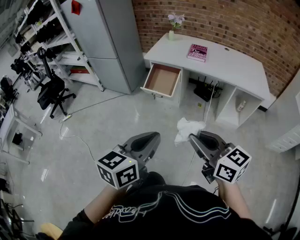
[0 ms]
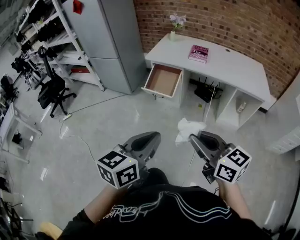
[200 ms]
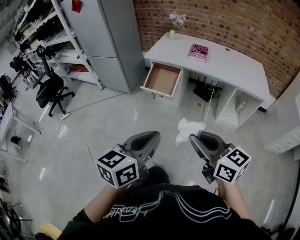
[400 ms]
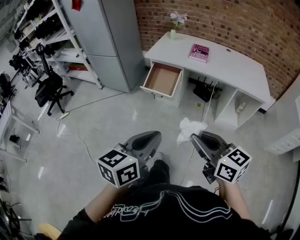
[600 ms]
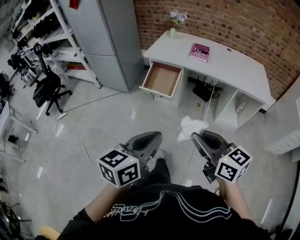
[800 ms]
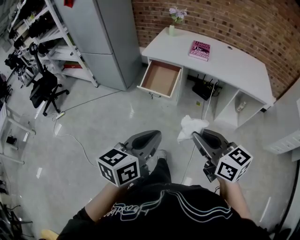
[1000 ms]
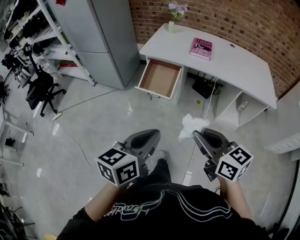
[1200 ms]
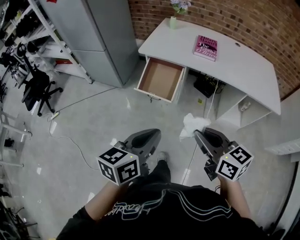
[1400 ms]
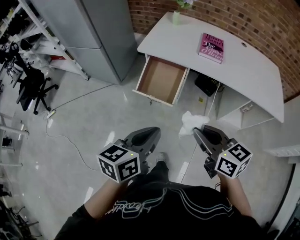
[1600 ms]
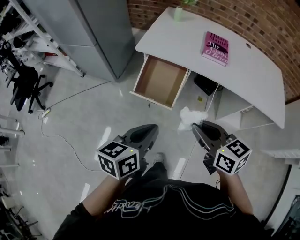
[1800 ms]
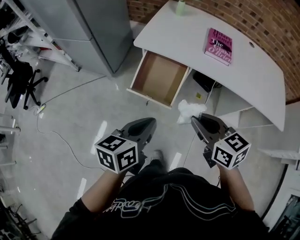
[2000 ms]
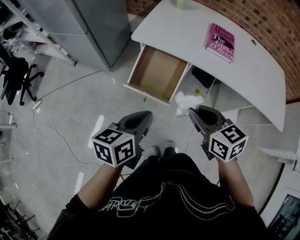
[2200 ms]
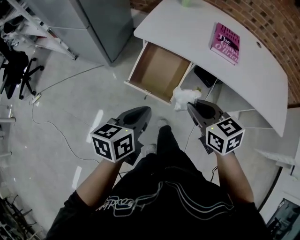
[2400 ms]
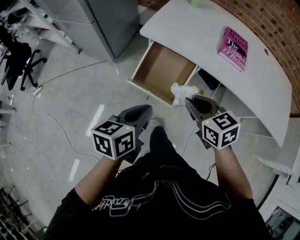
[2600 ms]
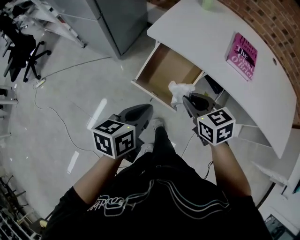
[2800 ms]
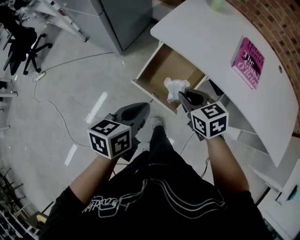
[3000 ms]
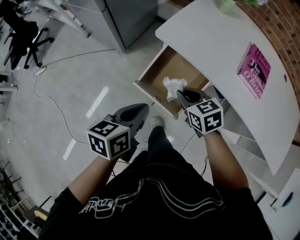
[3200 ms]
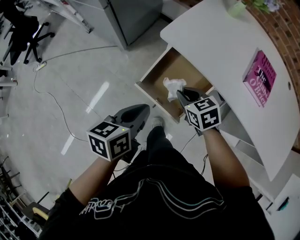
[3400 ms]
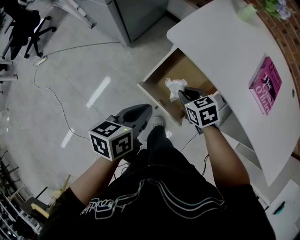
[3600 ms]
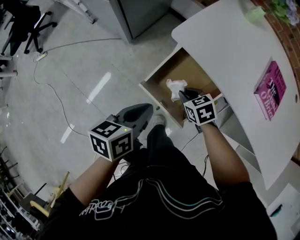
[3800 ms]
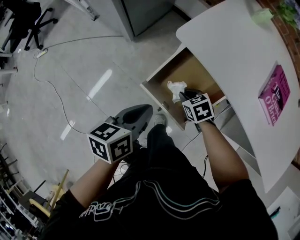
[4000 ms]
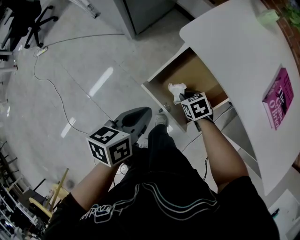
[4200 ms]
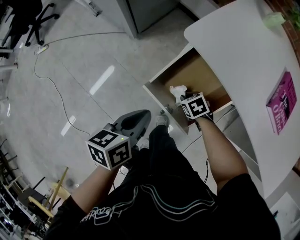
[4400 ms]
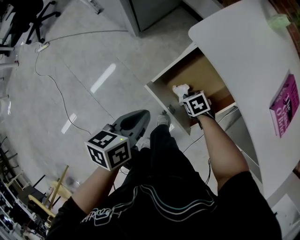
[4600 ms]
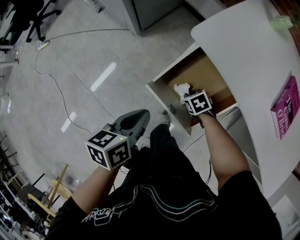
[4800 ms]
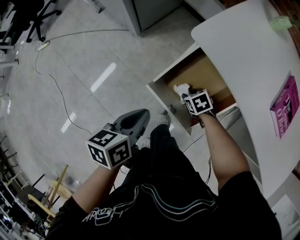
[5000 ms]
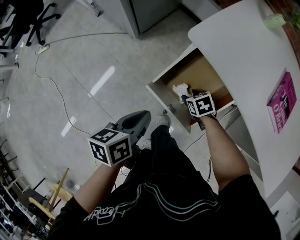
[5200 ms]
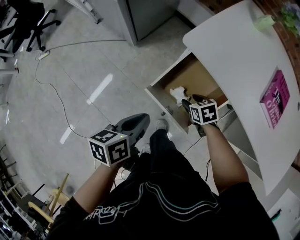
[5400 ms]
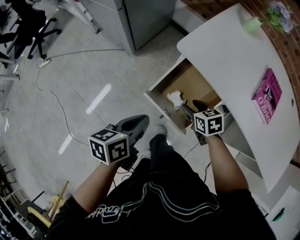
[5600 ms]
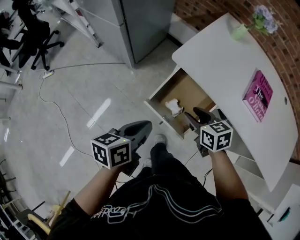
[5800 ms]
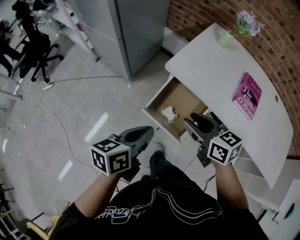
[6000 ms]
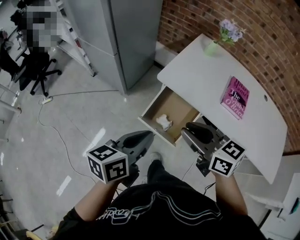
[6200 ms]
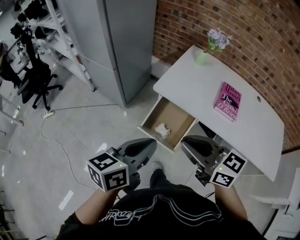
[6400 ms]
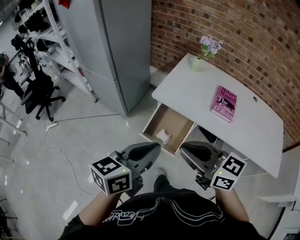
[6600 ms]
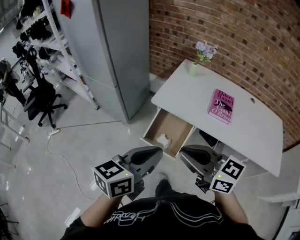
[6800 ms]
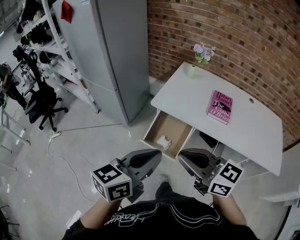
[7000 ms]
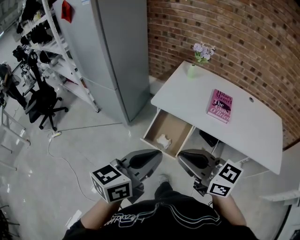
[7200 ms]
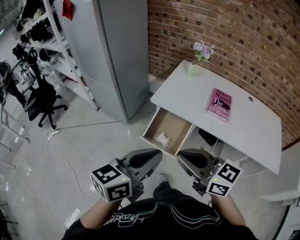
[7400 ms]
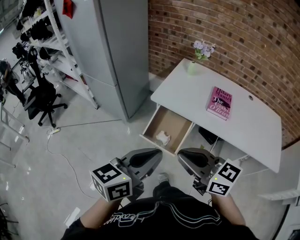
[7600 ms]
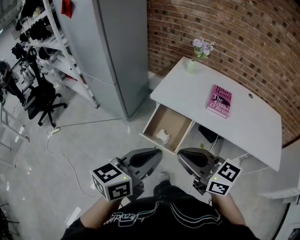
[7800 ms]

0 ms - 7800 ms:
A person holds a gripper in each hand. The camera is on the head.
0 ms - 1600 ms: Both grippers are carried forward, approximately 40 cm.
1600 ms - 3200 ms: Both grippers move forward and downward, some 40 cm. The right gripper rotates approximately 30 degrees. Meanwhile the left gripper rotates about 20 degrees.
3200 ms - 4600 ms: The left gripper travels downward by roughly 10 cm. The right gripper heads downward, covering about 30 cm, and turns by roughly 30 degrees.
4600 ms - 6200 ms: The right gripper travels upward by approximately 50 cm, points its fingers some 60 degrees further upward, and opens and closes again; the left gripper goes roughly 30 cm upward, and turns by roughly 30 degrees.
6200 ms - 7800 ms: The left gripper is displaced backward, upward and to the right by approximately 20 cm, and changes its angle by about 20 degrees; the right gripper heads backward and upward, covering some 20 cm.

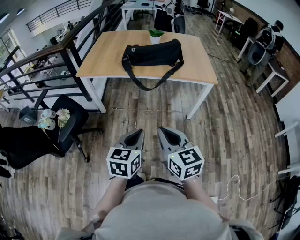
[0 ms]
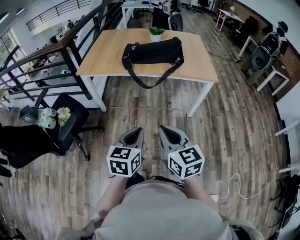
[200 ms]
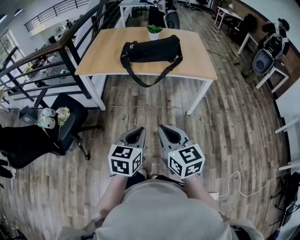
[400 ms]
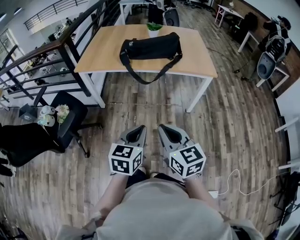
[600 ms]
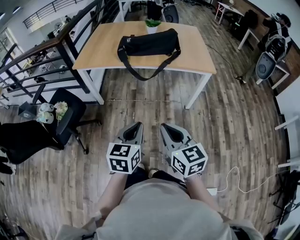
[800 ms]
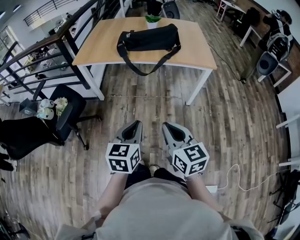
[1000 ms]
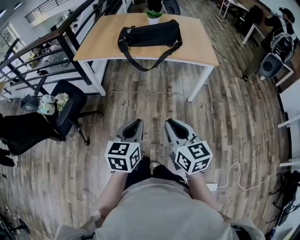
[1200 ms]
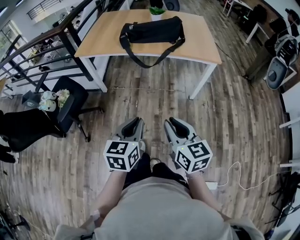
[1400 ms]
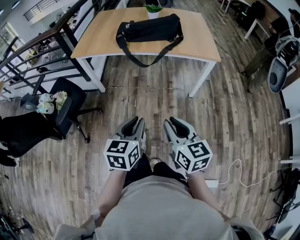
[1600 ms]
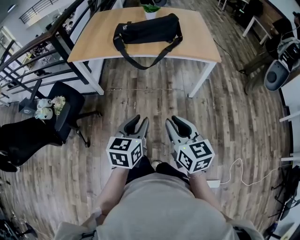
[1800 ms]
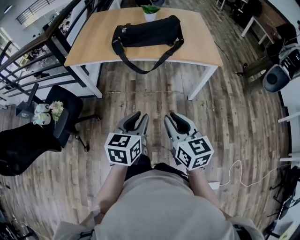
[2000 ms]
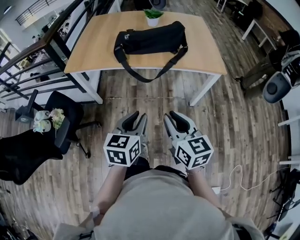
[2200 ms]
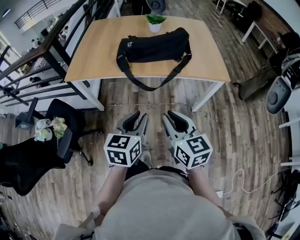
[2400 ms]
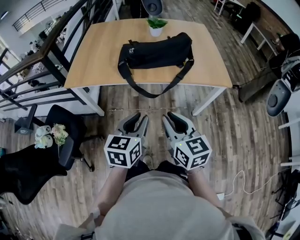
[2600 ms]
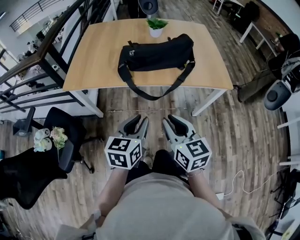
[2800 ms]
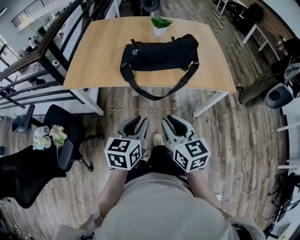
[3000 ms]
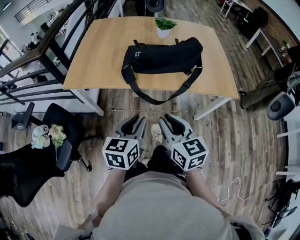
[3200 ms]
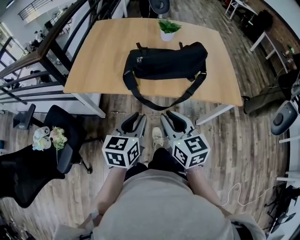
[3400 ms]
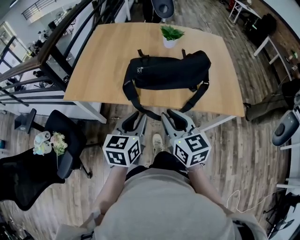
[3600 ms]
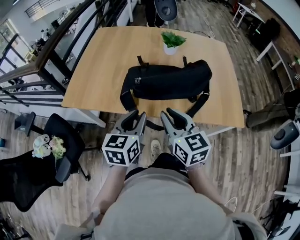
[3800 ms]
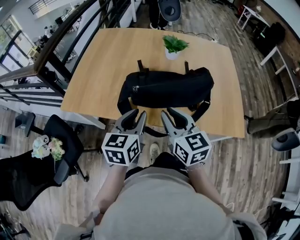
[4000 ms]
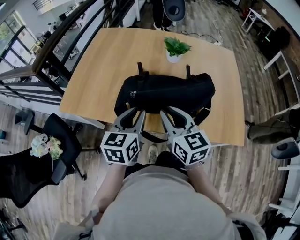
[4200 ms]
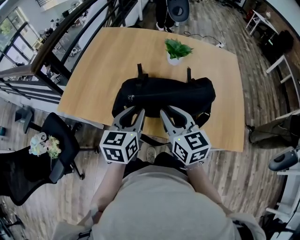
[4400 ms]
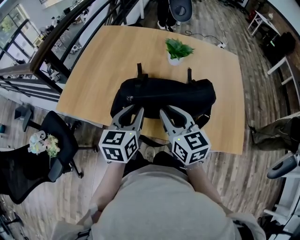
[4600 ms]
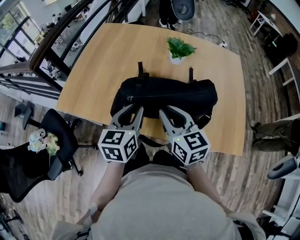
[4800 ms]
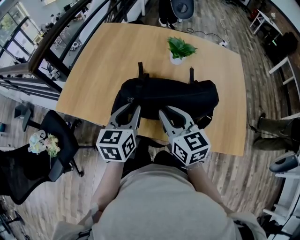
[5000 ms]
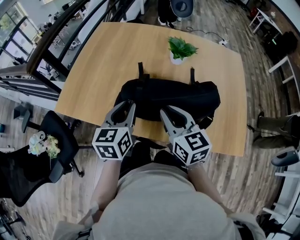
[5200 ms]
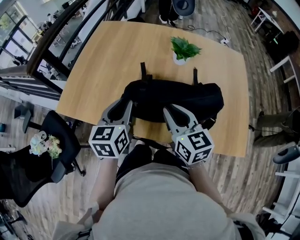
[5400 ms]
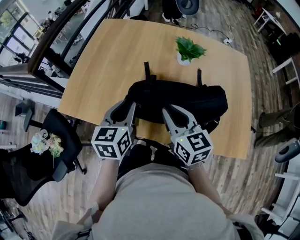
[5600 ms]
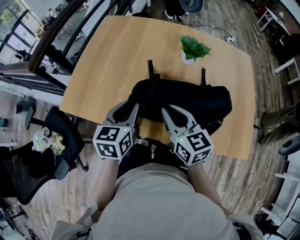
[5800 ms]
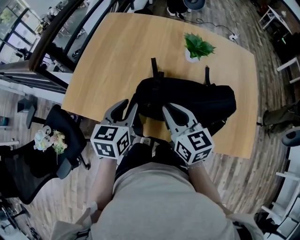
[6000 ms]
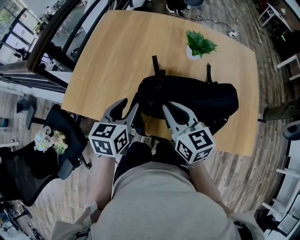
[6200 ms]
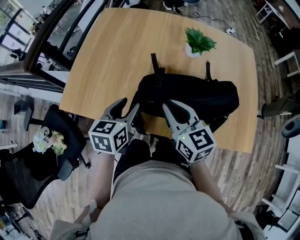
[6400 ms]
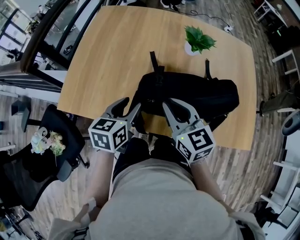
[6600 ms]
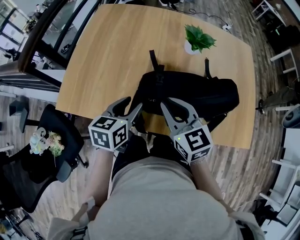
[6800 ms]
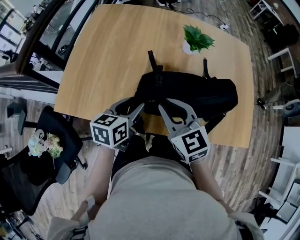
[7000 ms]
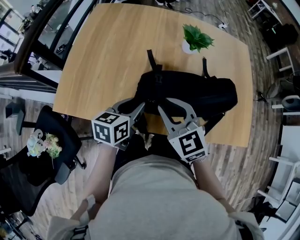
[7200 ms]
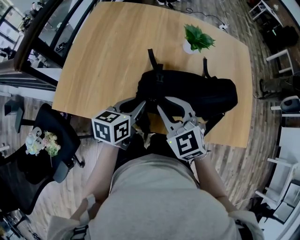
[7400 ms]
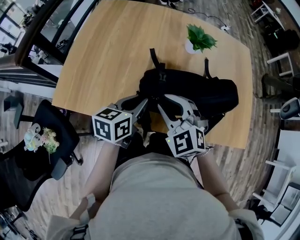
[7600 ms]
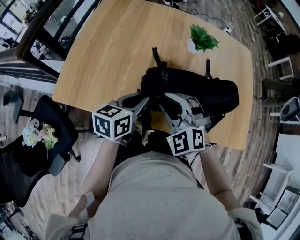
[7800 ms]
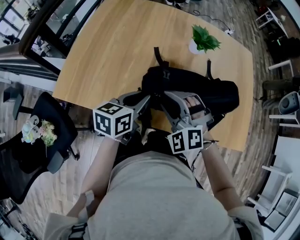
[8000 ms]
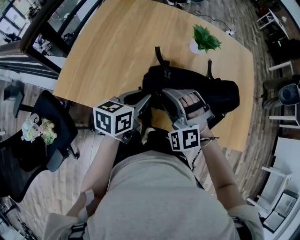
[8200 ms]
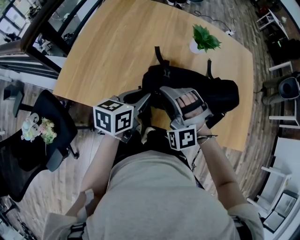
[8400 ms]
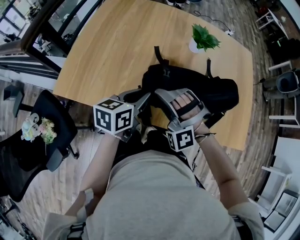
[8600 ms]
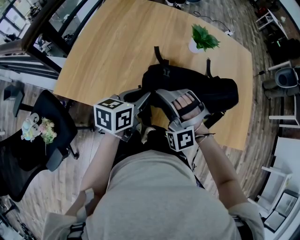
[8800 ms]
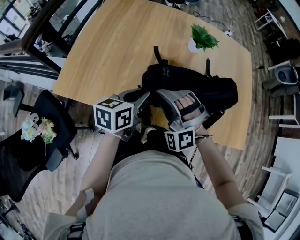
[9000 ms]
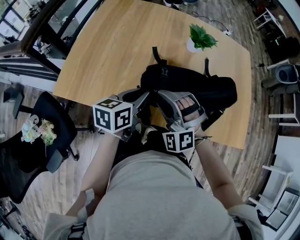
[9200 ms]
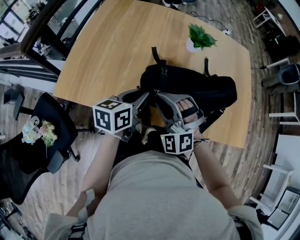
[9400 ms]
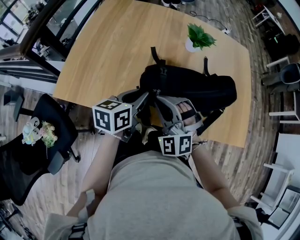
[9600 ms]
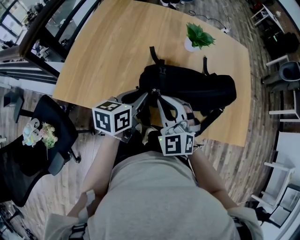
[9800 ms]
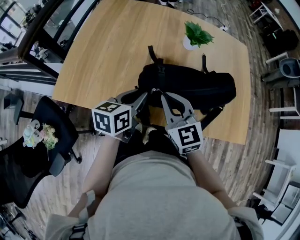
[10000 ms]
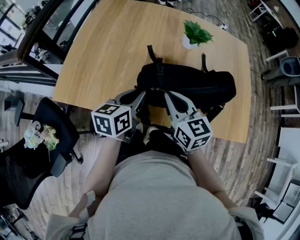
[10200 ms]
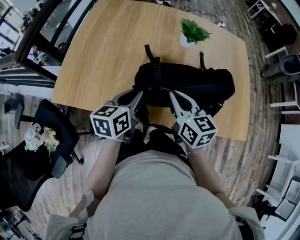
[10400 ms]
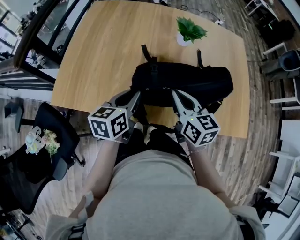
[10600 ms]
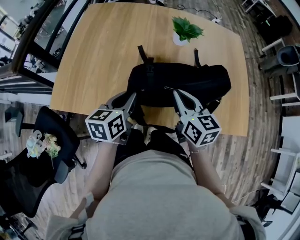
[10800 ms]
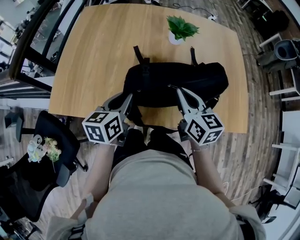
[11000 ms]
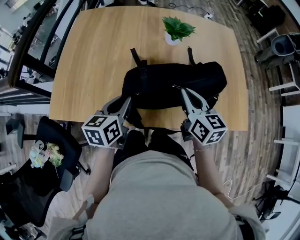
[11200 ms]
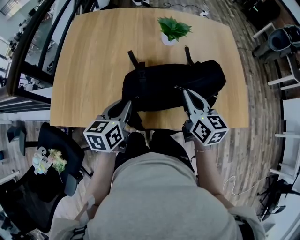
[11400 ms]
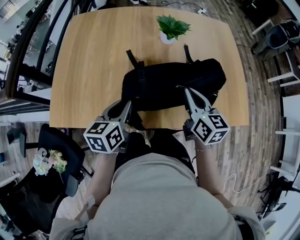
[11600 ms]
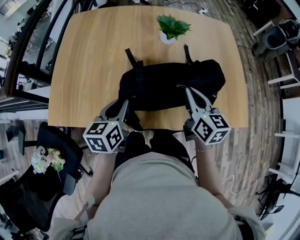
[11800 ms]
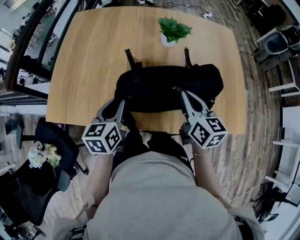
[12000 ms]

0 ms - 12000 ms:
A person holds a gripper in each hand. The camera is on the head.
0 ms - 1600 ms: The right gripper moves to the right and downward, approximately 10 cm.
1600 ms - 3000 ms: The two grippers go about 30 cm forward.
3000 ms - 4400 ms: The two grippers go approximately 30 cm forward.
4400 ms - 6000 ms: The grippers both shift forward and to the left by approximately 10 cm.
6000 ms - 7600 ms: The left gripper shifts by about 5 cm, and changes its angle by approximately 30 degrees. The right gripper rolls counterclockwise, seen from behind, by roughly 50 degrees.
7600 ms - 9000 ms: The right gripper rotates around the line of its fingers by some 50 degrees, counterclockwise from behind.
9000 ms - 10400 ms: The right gripper heads to the right, covering roughly 5 cm, twists roughly 100 degrees clockwise, seen from behind, and closes.
10400 ms - 12000 ms: The right gripper goes approximately 10 cm to the right.

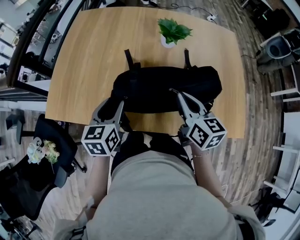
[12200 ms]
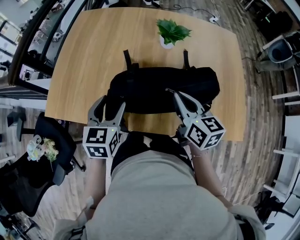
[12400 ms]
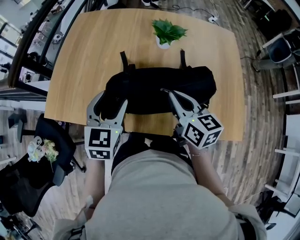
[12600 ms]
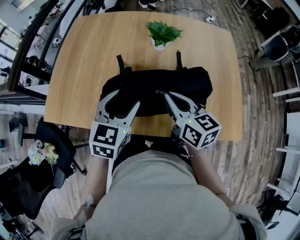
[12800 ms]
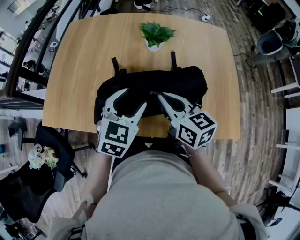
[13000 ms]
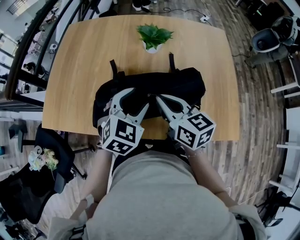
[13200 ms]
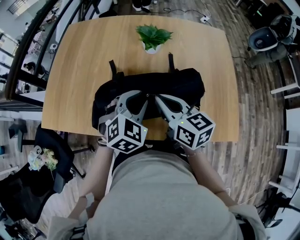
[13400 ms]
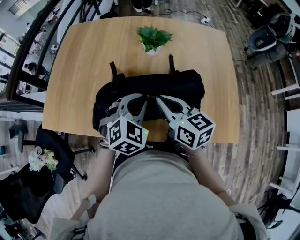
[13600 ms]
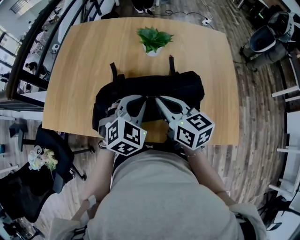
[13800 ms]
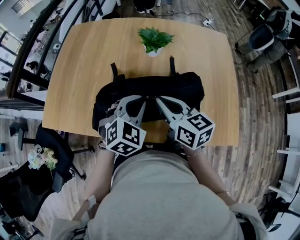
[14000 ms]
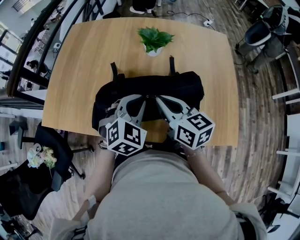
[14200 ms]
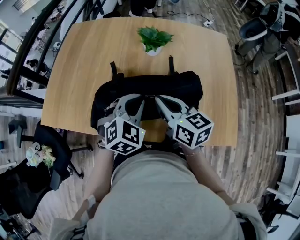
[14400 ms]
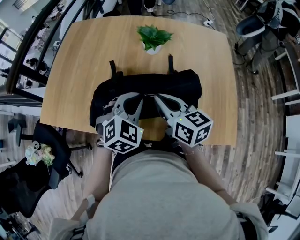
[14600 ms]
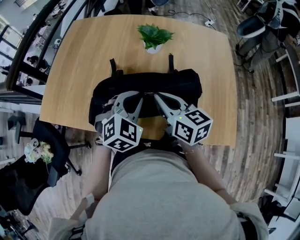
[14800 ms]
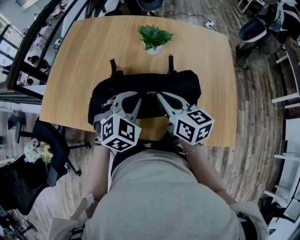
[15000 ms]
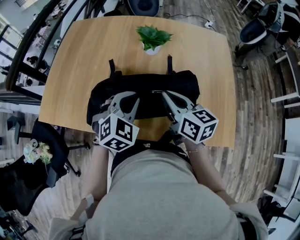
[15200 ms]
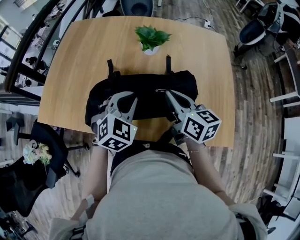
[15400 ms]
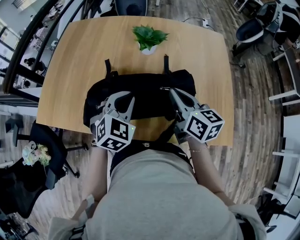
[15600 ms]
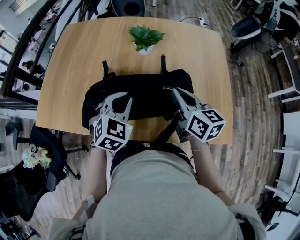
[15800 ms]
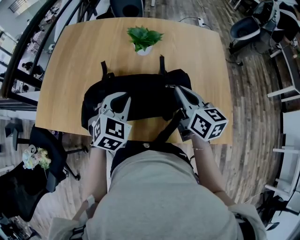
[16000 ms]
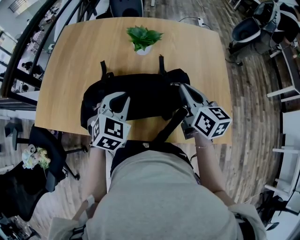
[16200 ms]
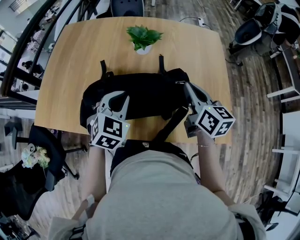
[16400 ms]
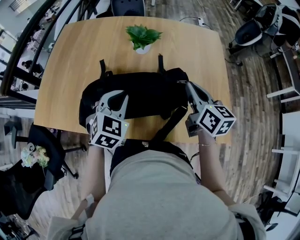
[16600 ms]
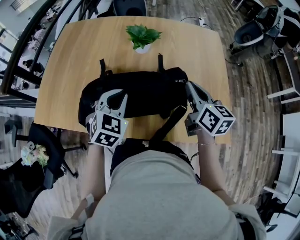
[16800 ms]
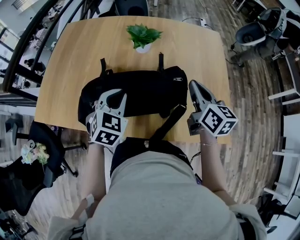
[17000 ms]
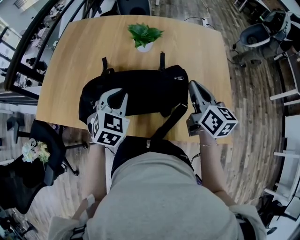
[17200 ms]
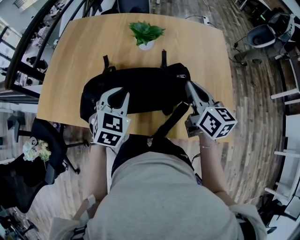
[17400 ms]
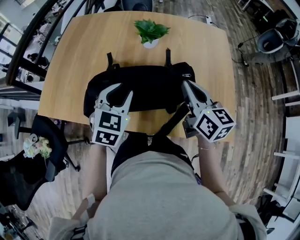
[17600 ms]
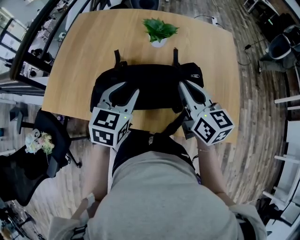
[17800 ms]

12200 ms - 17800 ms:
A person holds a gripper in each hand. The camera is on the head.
12200 ms - 13600 ms: The left gripper moves to the right, some 20 cm, rolls clockwise, seen from behind, by approximately 50 degrees, and closes its fingers.
13600 ms - 15000 ms: The grippers move only a little.
15000 ms - 16400 ms: The right gripper goes approximately 15 cm to the right.
16400 ms - 17800 ms: The left gripper moves approximately 5 cm, turns by about 30 degrees, and opens; the right gripper travels to the left by about 10 cm.
